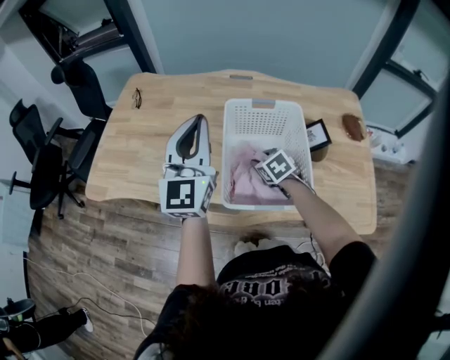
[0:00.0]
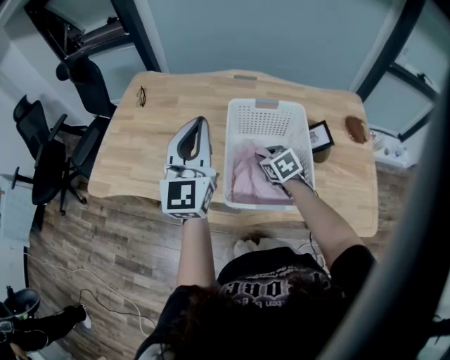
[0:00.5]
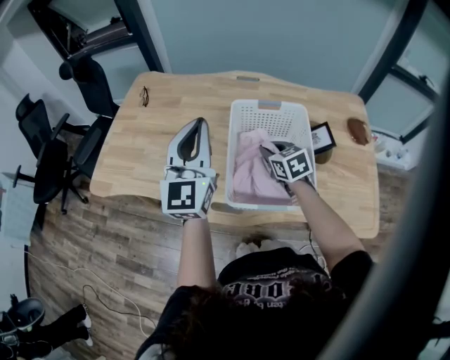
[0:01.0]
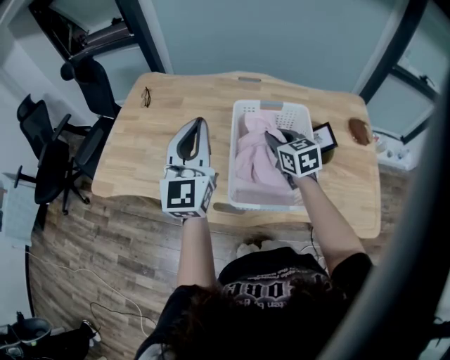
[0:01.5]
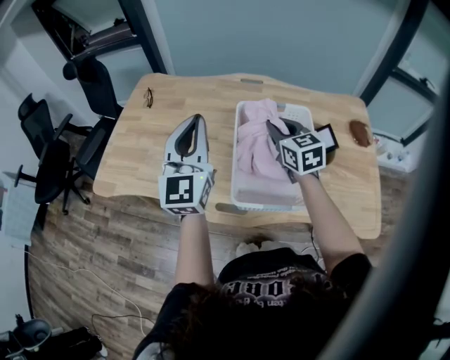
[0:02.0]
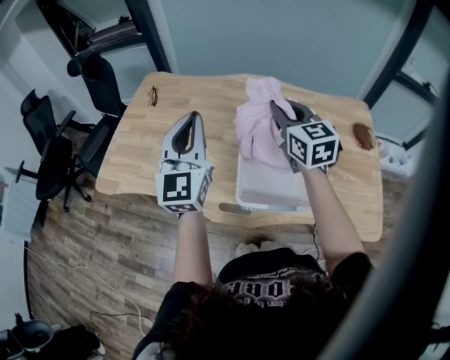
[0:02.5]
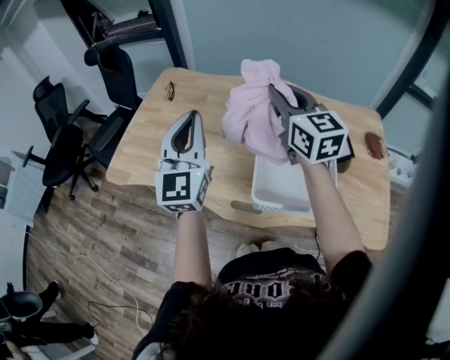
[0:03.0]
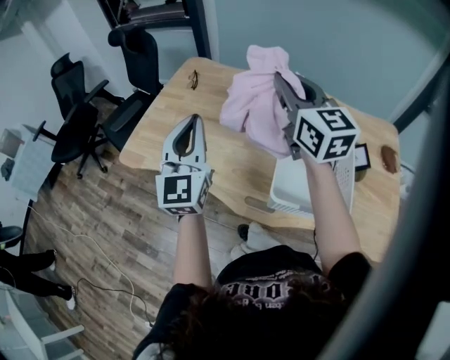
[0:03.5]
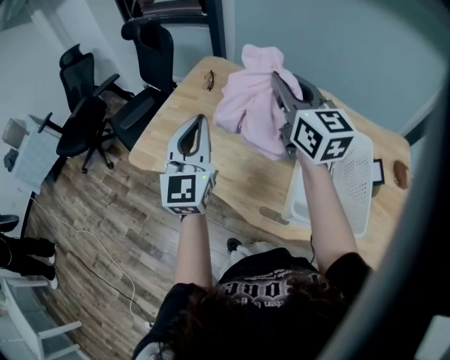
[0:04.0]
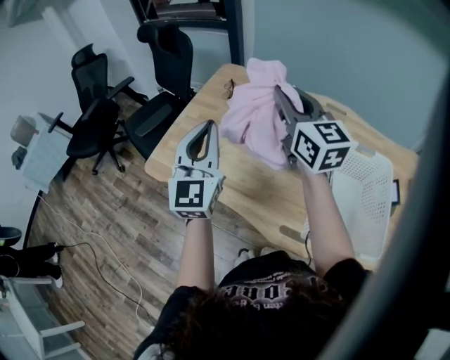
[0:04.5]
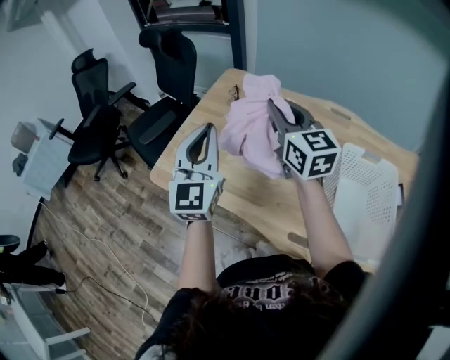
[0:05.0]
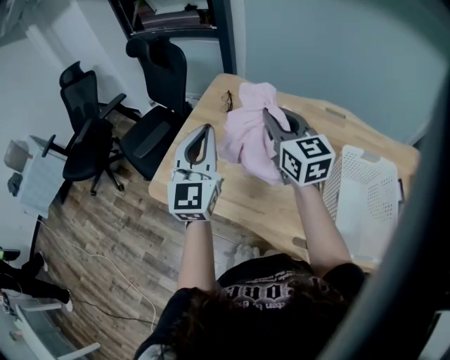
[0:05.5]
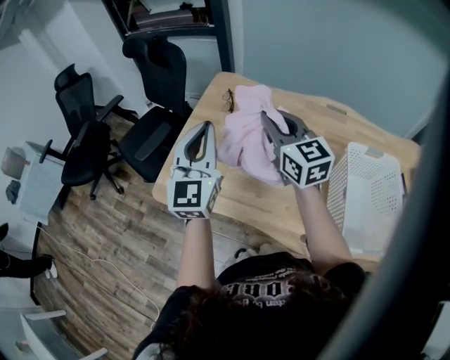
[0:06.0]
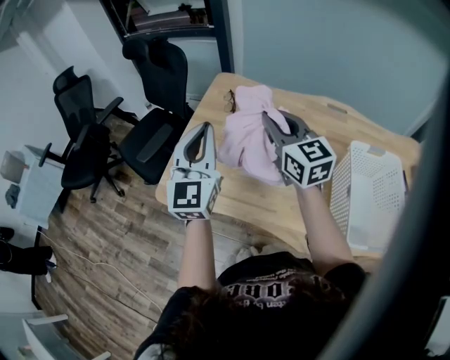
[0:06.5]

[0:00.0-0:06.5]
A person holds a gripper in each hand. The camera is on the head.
0:00.0 to 0:02.0: The right gripper moves upward, some 20 cm, and points its fingers roughly 30 degrees further upward.
0:02.0 to 0:04.5: The right gripper goes approximately 30 cm to the left and upward, and swivels approximately 30 degrees; the left gripper travels to the left by some 25 cm.
0:04.5 to 0:06.5: The left gripper heads forward and to the left, covering roughly 10 cm. The right gripper moves to the left and downward, roughly 10 cm.

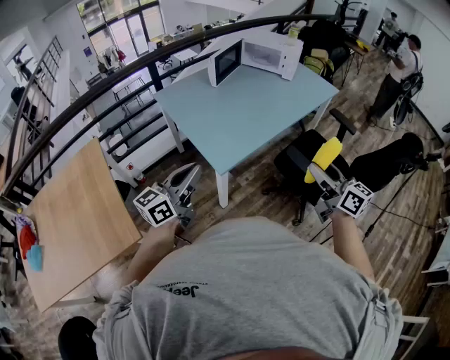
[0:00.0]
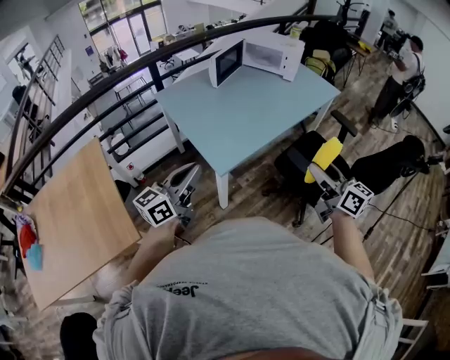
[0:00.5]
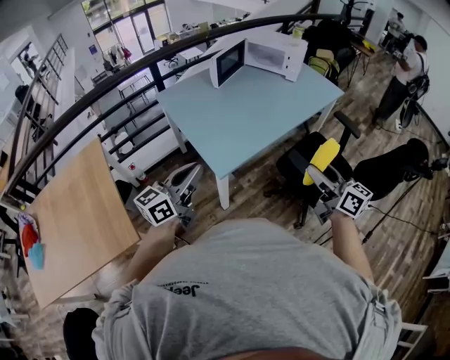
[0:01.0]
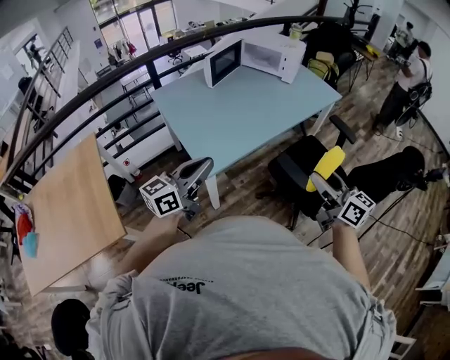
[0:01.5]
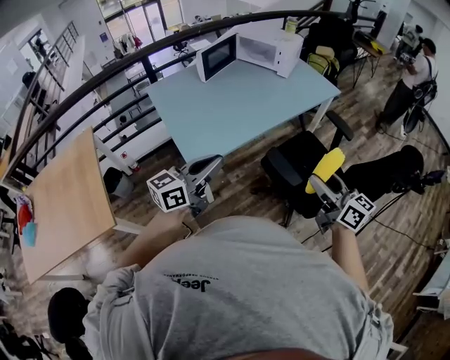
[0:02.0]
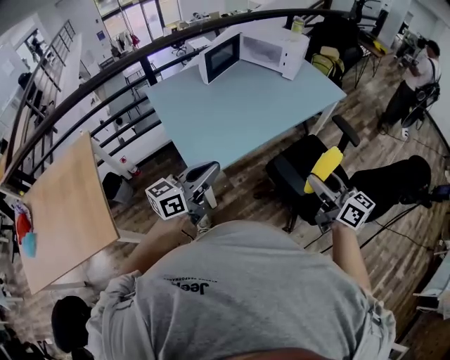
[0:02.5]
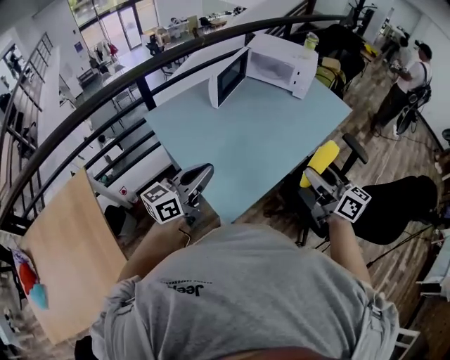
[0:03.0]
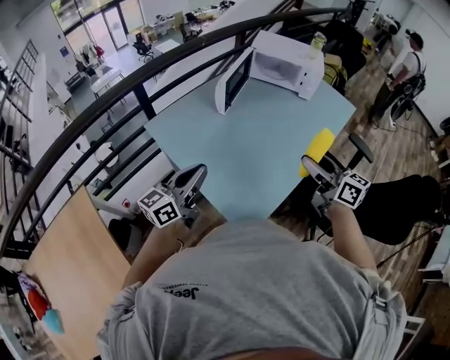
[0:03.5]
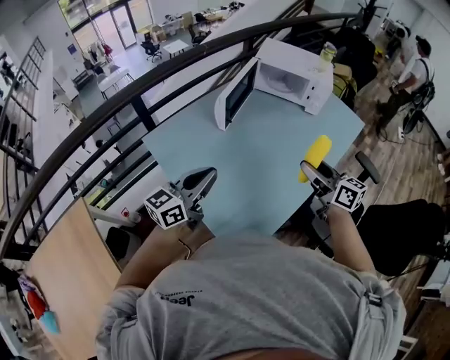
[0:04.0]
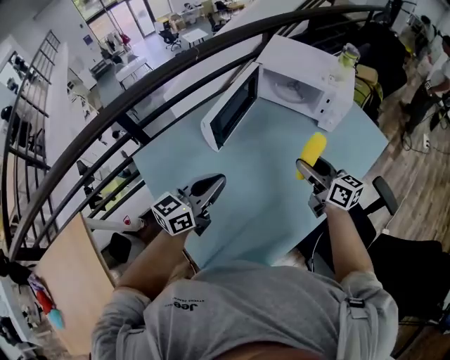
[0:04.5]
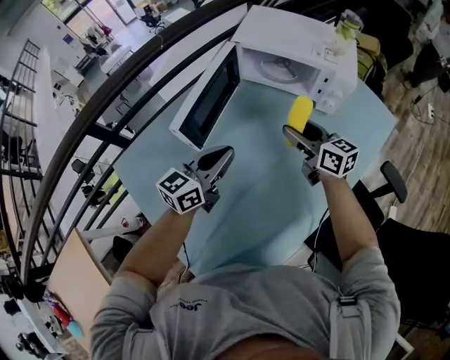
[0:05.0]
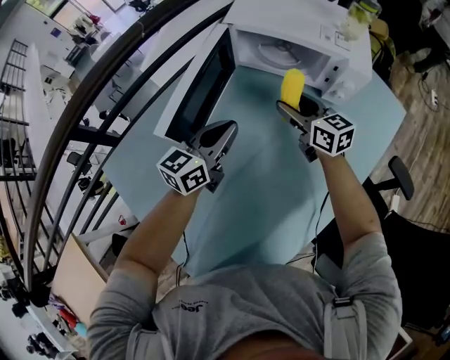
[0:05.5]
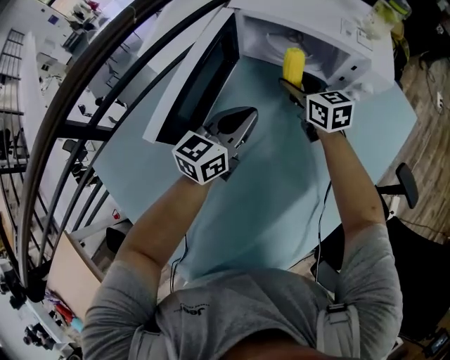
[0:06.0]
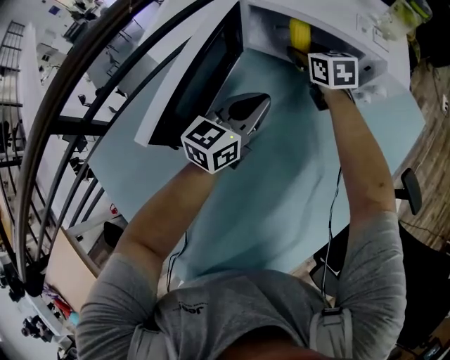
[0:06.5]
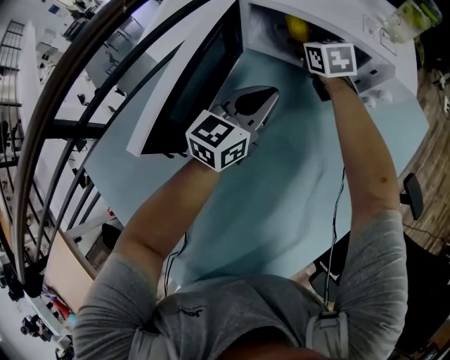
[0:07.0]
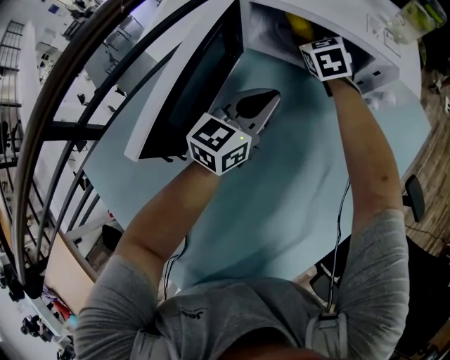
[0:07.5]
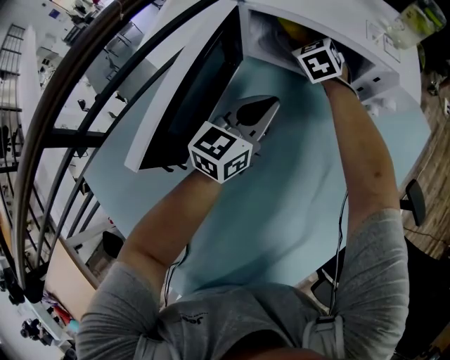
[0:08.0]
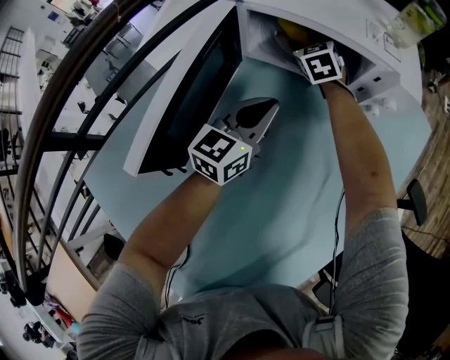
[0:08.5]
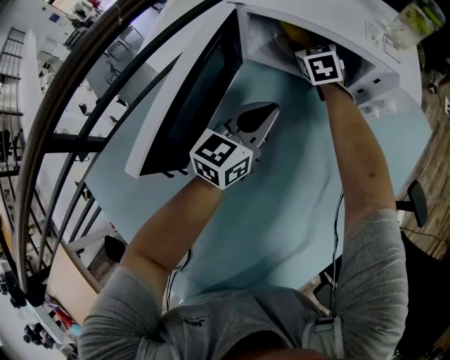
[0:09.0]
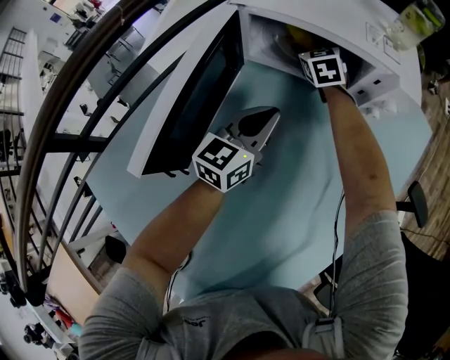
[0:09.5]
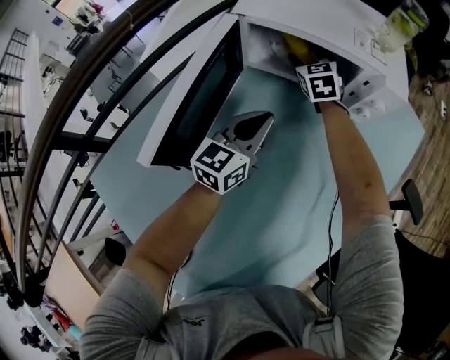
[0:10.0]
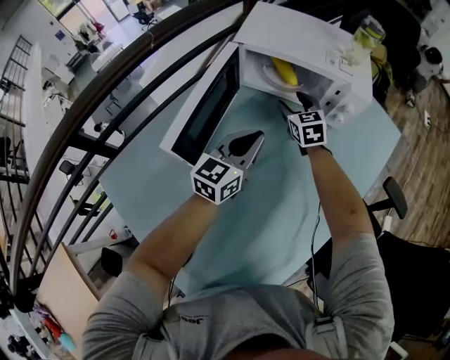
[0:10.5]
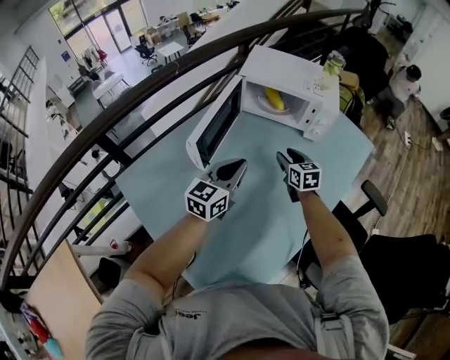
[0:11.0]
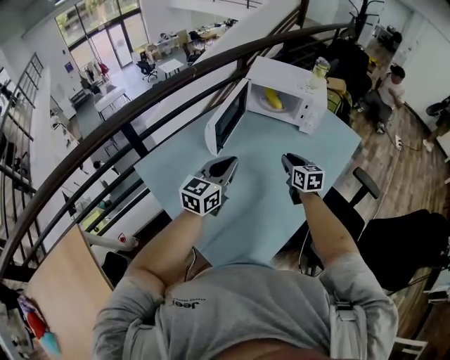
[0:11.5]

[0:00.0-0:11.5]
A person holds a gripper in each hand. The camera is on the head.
0:00.0 to 0:02.0: Both grippers move to the right, about 20 cm.
0:02.0 to 0:04.0: The two grippers travel together, forward and to the left, approximately 50 cm.
0:04.0 to 0:06.0: The two grippers travel together, forward, some 50 cm. The two grippers go roughly 20 cm downward. The right gripper changes its angle by roughly 20 degrees.
0:06.0 to 0:07.5: The right gripper moves forward, approximately 15 cm, and rotates some 30 degrees, while the left gripper moves forward, some 5 cm.
0:07.5 to 0:09.5: The grippers move only a little.
0:09.5 to 0:11.5: The right gripper shifts about 50 cm backward, swivels roughly 30 degrees, and closes; the left gripper moves backward and upward, approximately 40 cm.

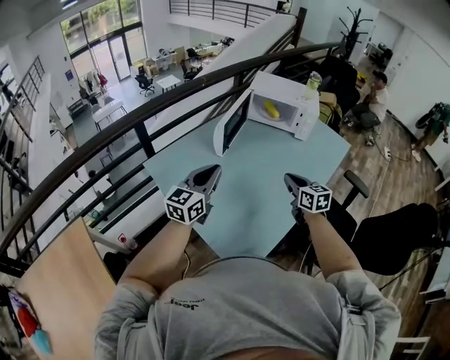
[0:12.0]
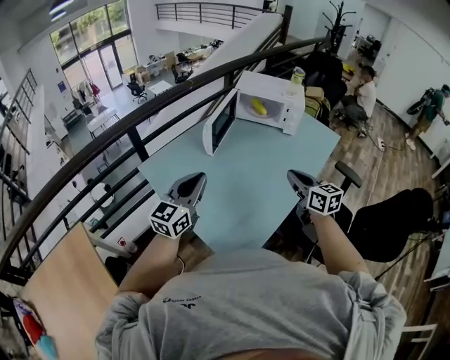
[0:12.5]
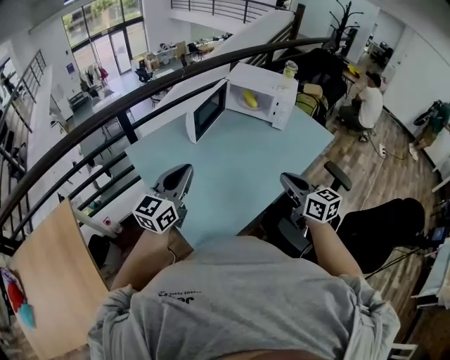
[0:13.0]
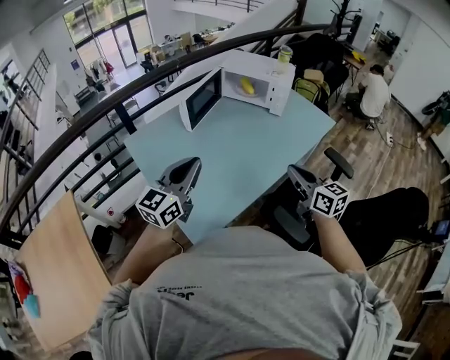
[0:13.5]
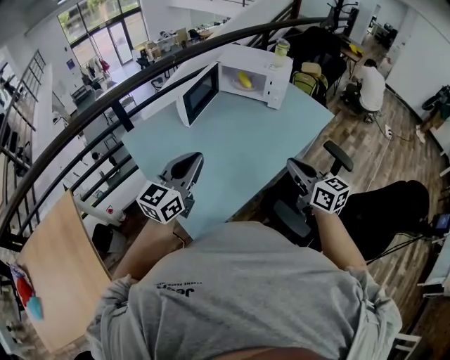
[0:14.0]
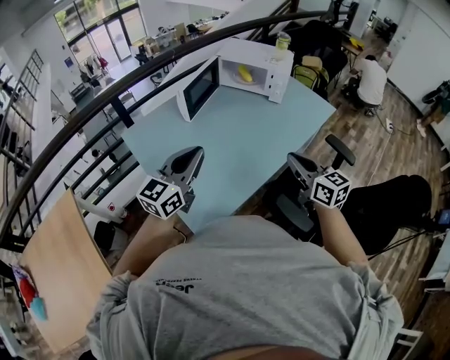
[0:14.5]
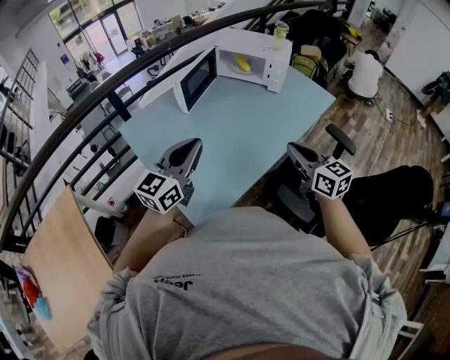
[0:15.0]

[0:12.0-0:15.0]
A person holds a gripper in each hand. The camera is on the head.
0:12.0 to 0:13.5: The right gripper moves to the right, backward and upward, some 25 cm. Meanwhile the left gripper goes roughly 20 cm to the right and backward.
0:13.5 to 0:15.0: The grippers make only small movements.

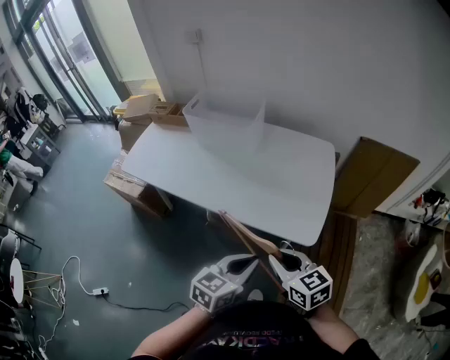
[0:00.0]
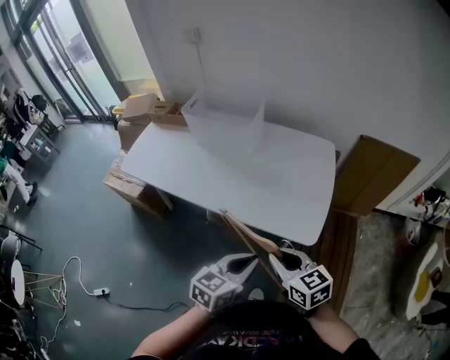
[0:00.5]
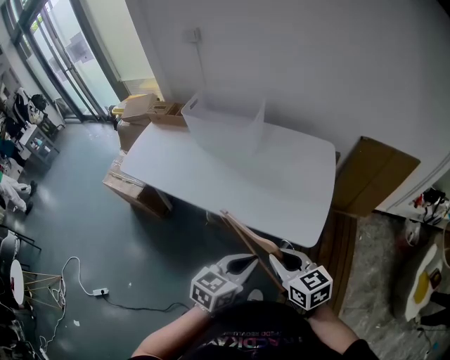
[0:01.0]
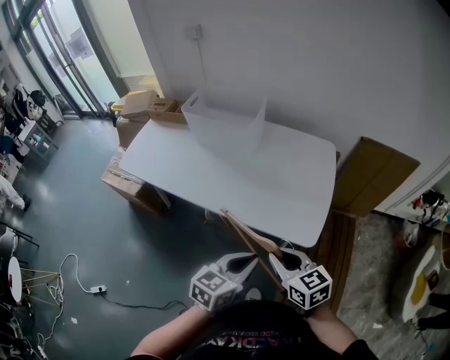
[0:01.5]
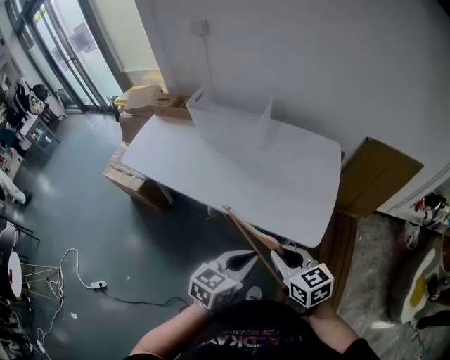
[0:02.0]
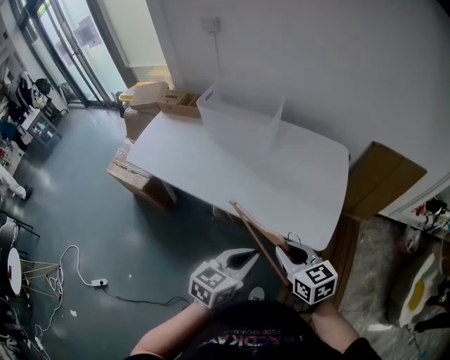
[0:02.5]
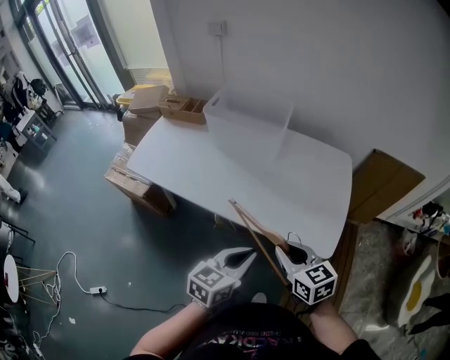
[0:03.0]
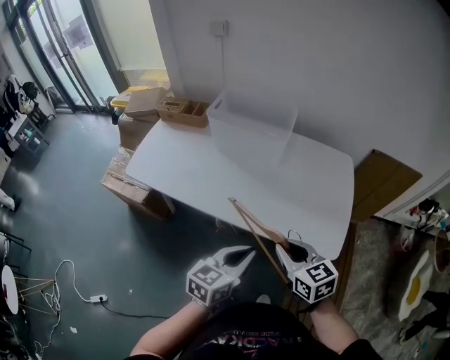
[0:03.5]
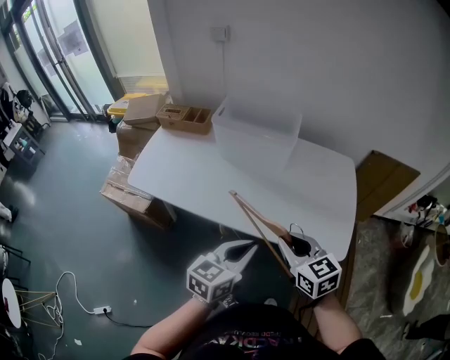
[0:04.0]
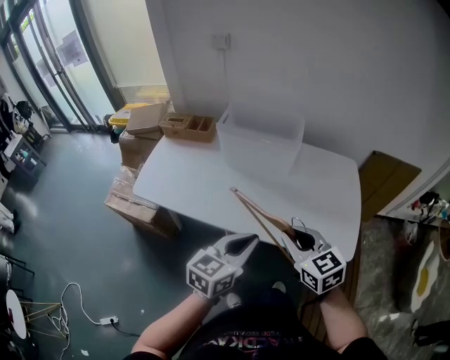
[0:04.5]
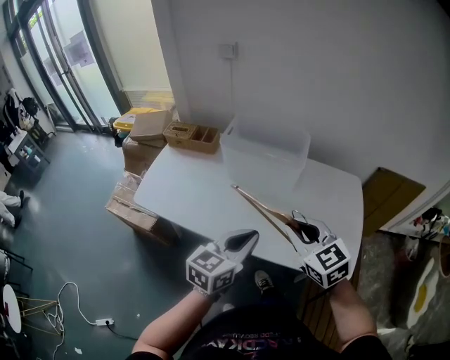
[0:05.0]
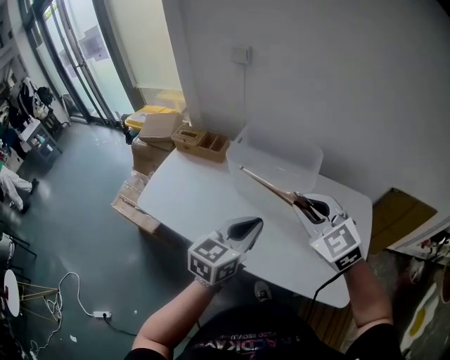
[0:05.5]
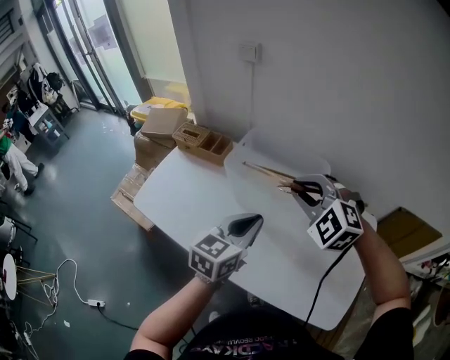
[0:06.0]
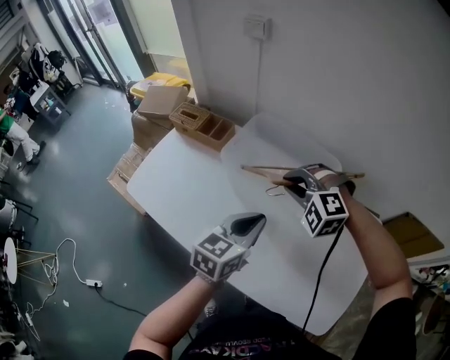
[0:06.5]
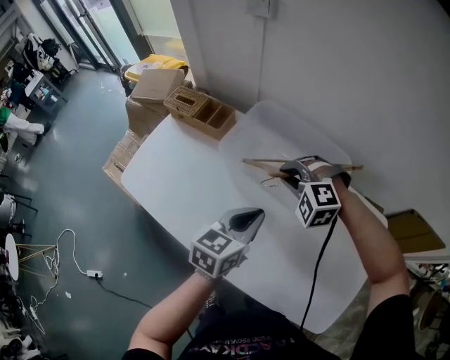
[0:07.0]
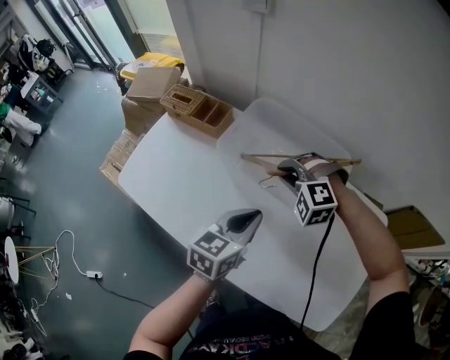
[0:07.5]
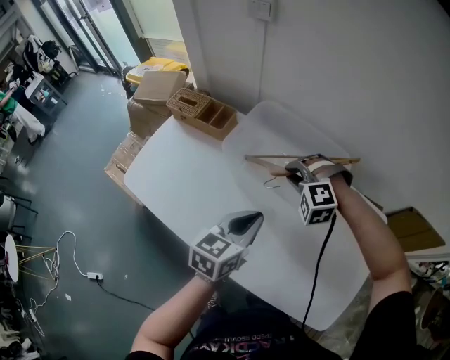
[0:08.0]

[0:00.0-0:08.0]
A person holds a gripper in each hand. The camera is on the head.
0:00.0 to 0:02.0: The grippers move only a little.
0:02.0 to 0:04.0: The two grippers go roughly 25 cm to the left and forward.
0:04.0 to 0:06.0: Both grippers travel together forward, about 30 cm. The right gripper rolls counterclockwise, seen from behind, by some 70 degrees.
0:06.0 to 0:08.0: The right gripper travels downward and forward by about 25 cm, and changes its angle by some 30 degrees; the left gripper shifts some 10 cm downward and forward.
